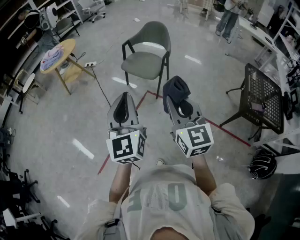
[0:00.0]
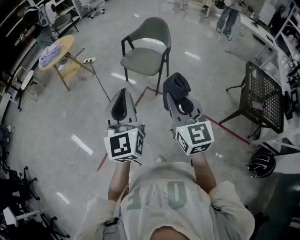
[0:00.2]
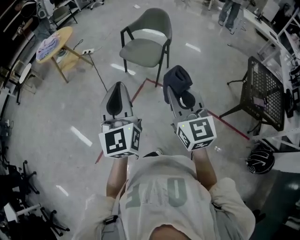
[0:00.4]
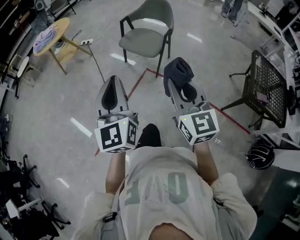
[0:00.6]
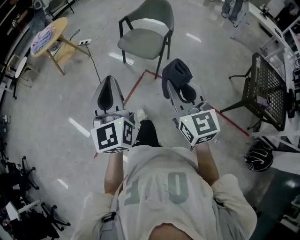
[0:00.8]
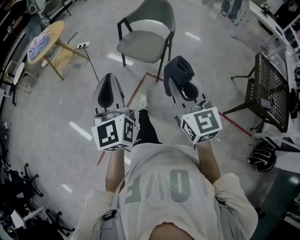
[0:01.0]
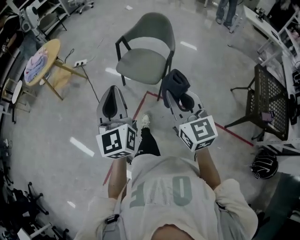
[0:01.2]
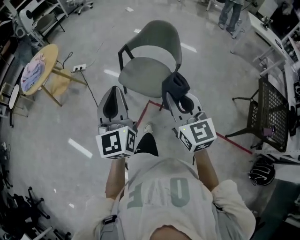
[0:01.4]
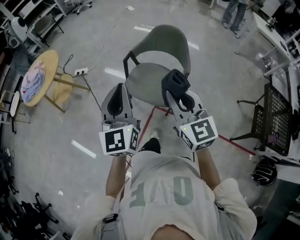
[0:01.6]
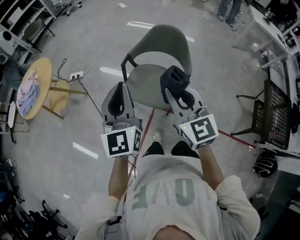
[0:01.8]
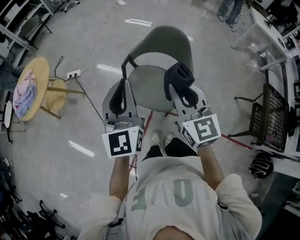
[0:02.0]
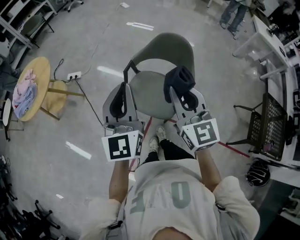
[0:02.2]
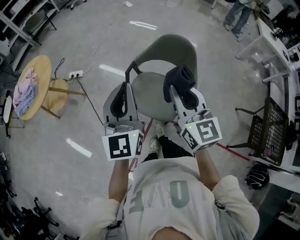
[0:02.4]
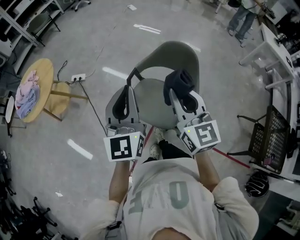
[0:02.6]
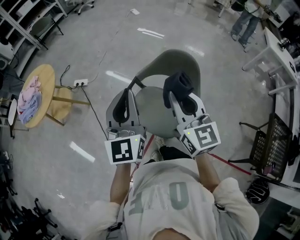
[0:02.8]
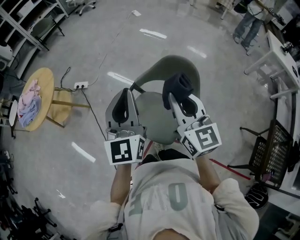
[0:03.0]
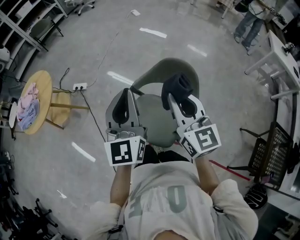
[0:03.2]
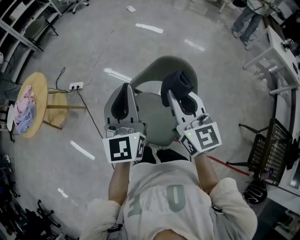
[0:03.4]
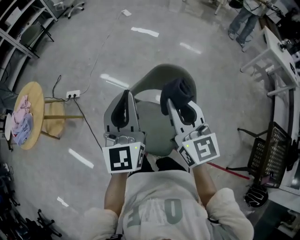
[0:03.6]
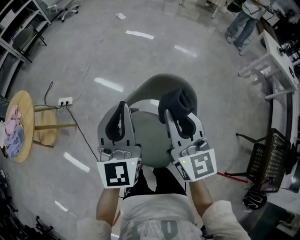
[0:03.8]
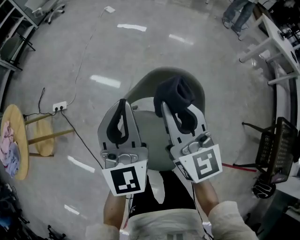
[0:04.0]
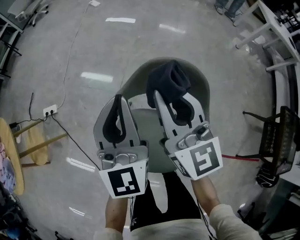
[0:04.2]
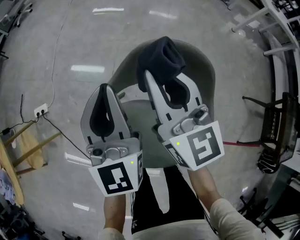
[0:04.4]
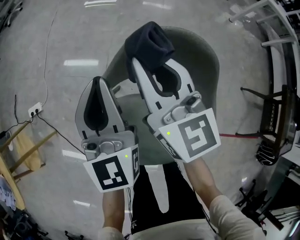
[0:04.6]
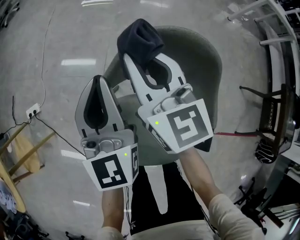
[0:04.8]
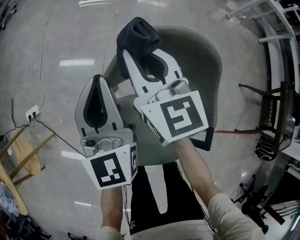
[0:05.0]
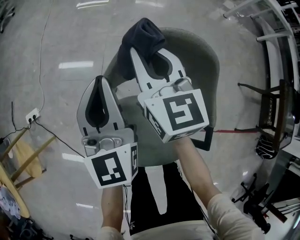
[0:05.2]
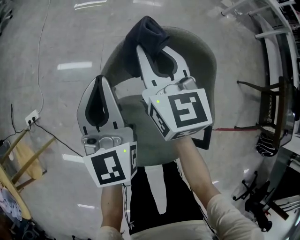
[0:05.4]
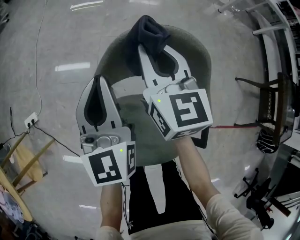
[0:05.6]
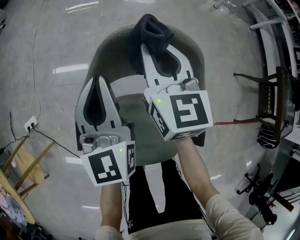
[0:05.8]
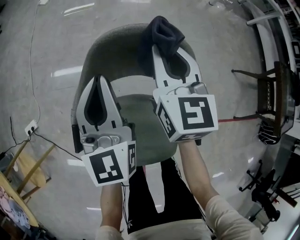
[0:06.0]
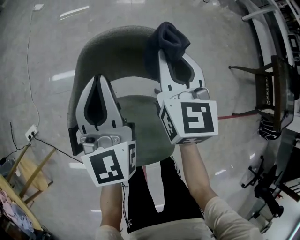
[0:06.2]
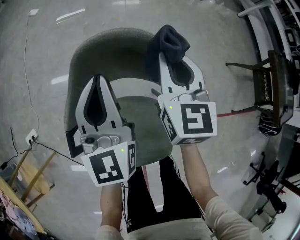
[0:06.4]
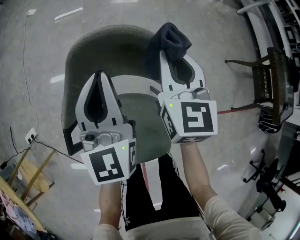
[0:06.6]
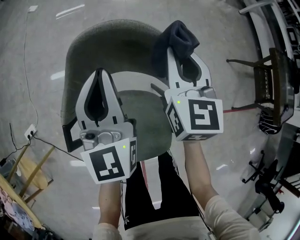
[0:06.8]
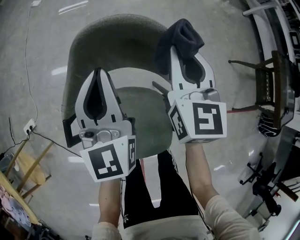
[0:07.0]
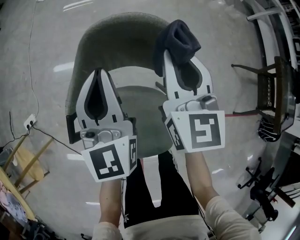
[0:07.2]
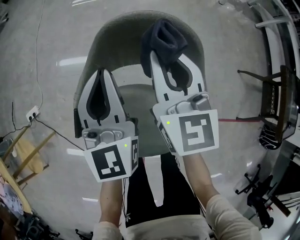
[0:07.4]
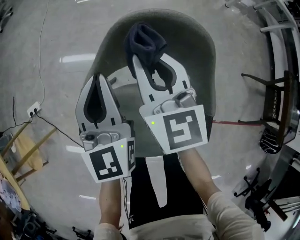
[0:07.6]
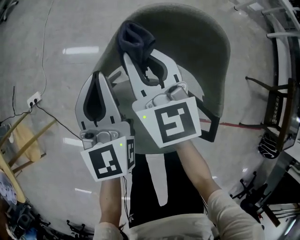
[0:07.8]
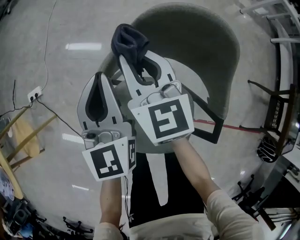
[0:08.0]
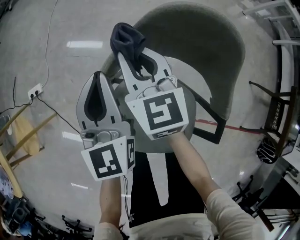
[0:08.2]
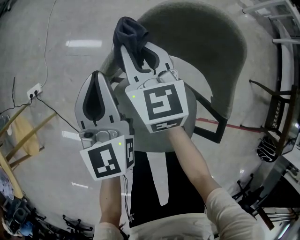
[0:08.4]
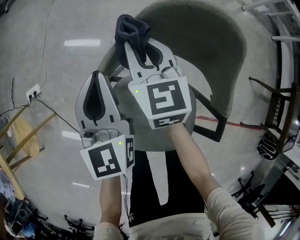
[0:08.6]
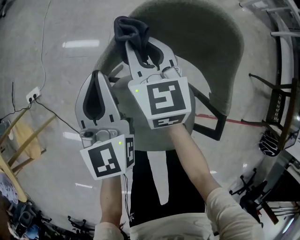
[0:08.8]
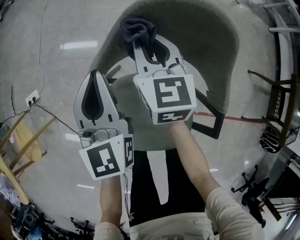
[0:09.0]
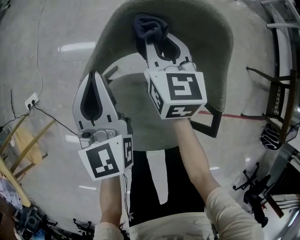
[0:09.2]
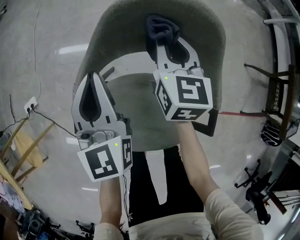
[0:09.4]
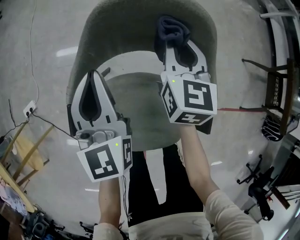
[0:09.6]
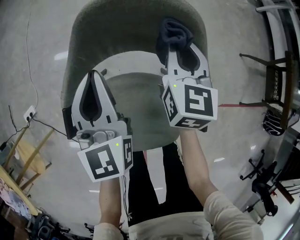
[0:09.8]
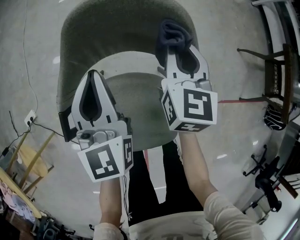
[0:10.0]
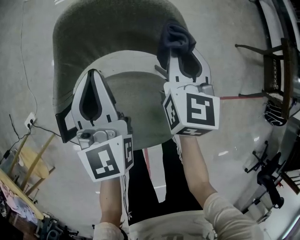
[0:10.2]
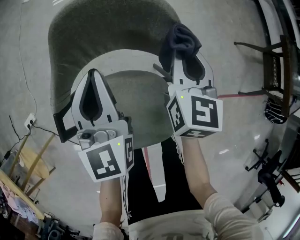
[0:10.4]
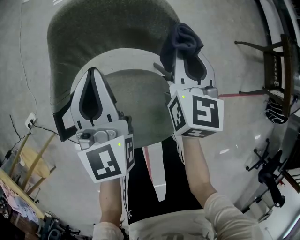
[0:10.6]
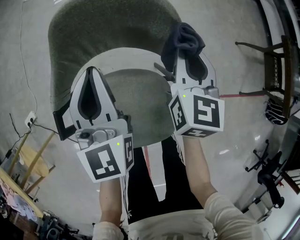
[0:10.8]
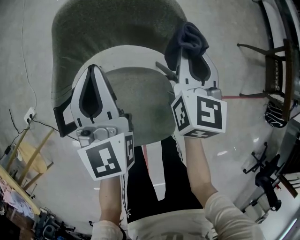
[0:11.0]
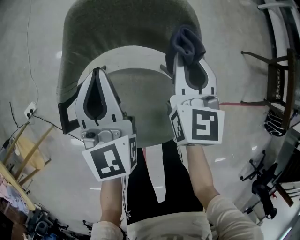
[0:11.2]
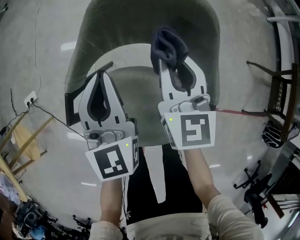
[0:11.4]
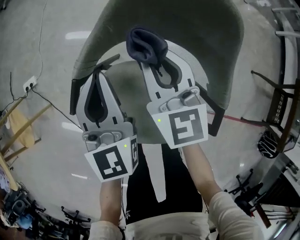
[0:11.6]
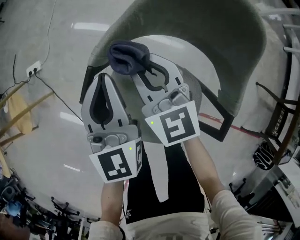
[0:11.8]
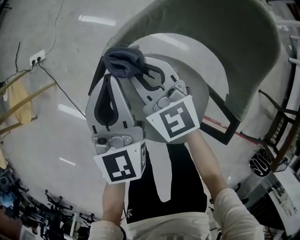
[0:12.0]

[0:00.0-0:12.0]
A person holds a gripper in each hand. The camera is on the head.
0:00.0 to 0:01.6: The pair of grippers is taken forward, some 50 cm.
0:01.6 to 0:03.0: The grippers both shift forward by about 25 cm.
0:03.0 to 0:04.4: The two grippers go approximately 30 cm forward and downward.
0:04.4 to 0:06.0: The two grippers go approximately 10 cm to the right and downward. The right gripper changes its angle by about 30 degrees.
0:06.0 to 0:07.6: The right gripper moves to the left, roughly 10 cm. Meanwhile the left gripper ends up some 5 cm from where it was.
0:07.6 to 0:09.0: The right gripper travels downward by roughly 10 cm, and goes to the left and returns, some 10 cm each way. Meanwhile the left gripper shifts by some 5 cm.
0:09.0 to 0:10.4: The left gripper shifts approximately 15 cm to the right. The right gripper travels to the right by roughly 25 cm, and changes its angle by approximately 30 degrees.
0:10.4 to 0:12.0: The right gripper changes place by about 35 cm, and rotates some 70 degrees. Meanwhile the left gripper ends up about 20 cm from where it was, and turns by roughly 30 degrees.

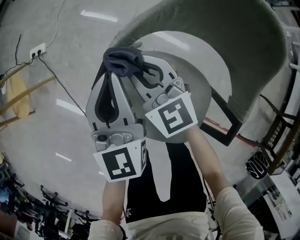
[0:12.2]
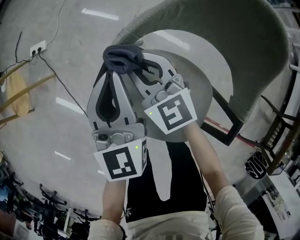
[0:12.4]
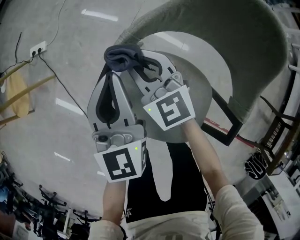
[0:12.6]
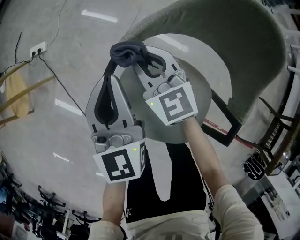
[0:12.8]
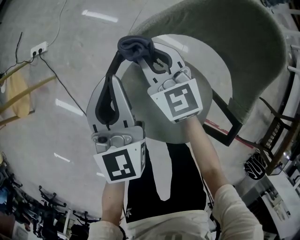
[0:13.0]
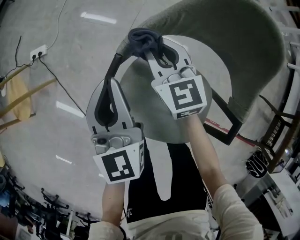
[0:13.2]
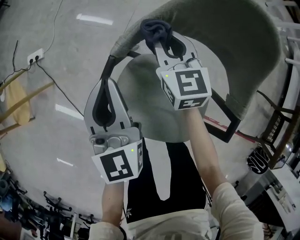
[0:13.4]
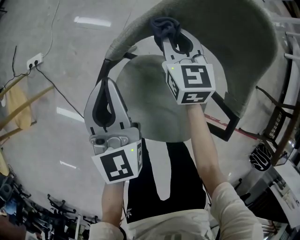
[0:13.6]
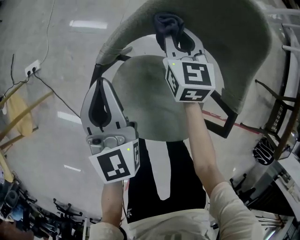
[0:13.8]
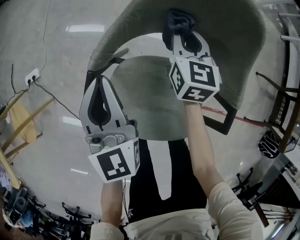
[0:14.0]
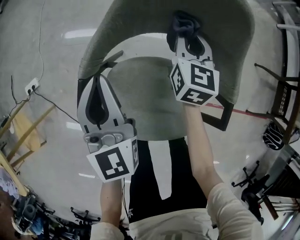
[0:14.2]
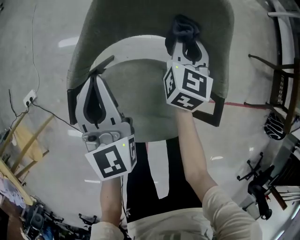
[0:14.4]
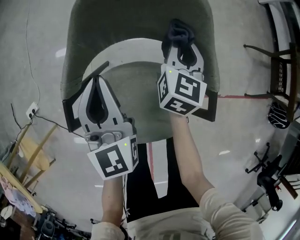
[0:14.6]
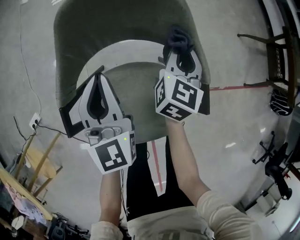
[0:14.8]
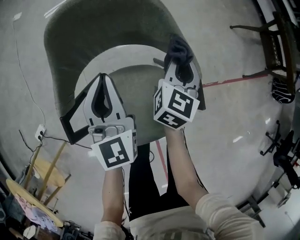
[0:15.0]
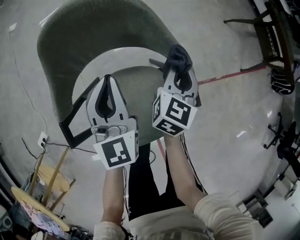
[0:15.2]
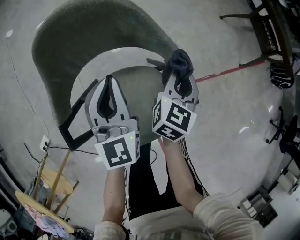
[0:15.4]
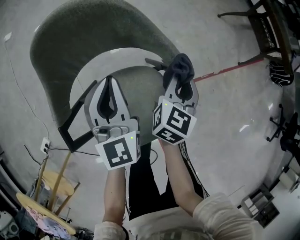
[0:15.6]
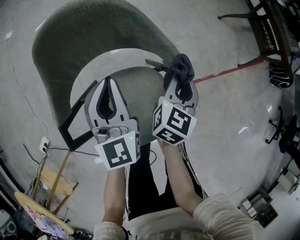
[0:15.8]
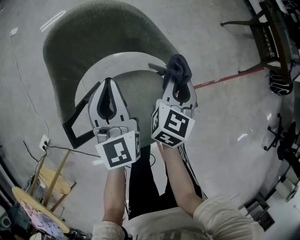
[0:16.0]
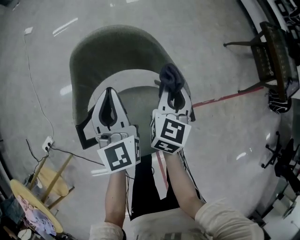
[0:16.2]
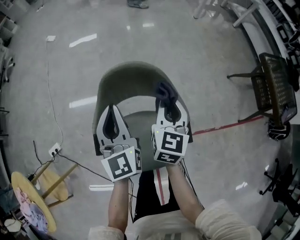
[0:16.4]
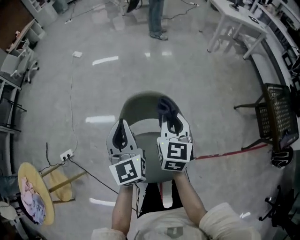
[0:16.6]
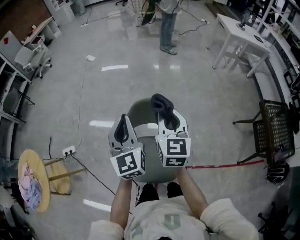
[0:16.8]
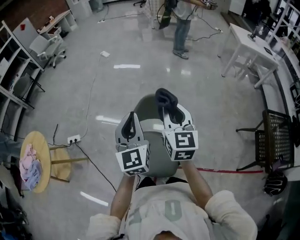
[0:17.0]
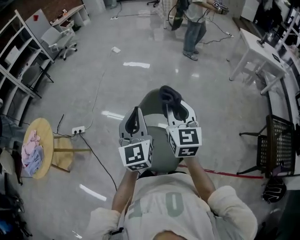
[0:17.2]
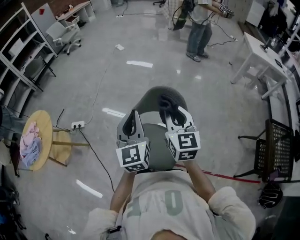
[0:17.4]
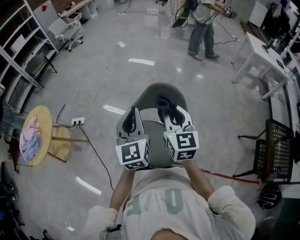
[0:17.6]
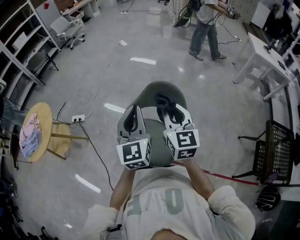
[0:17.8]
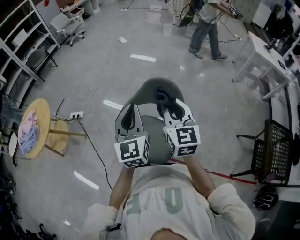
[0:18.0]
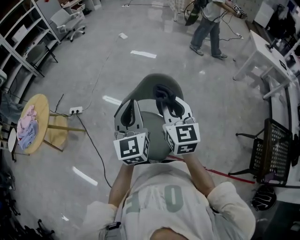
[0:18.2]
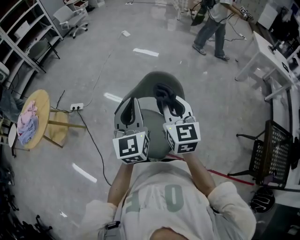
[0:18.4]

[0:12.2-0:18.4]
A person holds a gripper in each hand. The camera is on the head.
0:12.2 to 0:13.8: The right gripper heads to the right, covering some 20 cm, and changes its angle by approximately 40 degrees.
0:13.8 to 0:15.4: The right gripper shifts by roughly 35 cm, and turns by some 70 degrees; the left gripper shifts by some 25 cm, and turns by approximately 40 degrees.
0:15.4 to 0:16.8: Both grippers travel together upward, roughly 35 cm. The right gripper swivels roughly 50 degrees. Meanwhile the left gripper changes its angle by some 30 degrees.
0:16.8 to 0:18.4: The two grippers go roughly 15 cm backward. The right gripper rotates approximately 30 degrees.

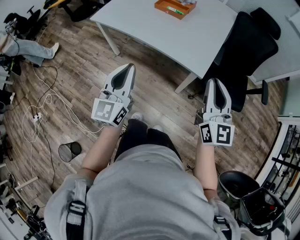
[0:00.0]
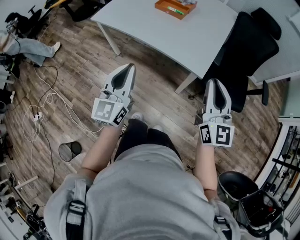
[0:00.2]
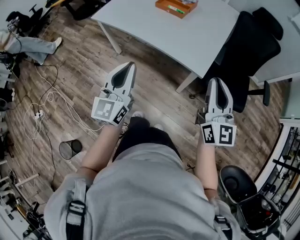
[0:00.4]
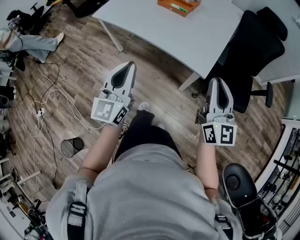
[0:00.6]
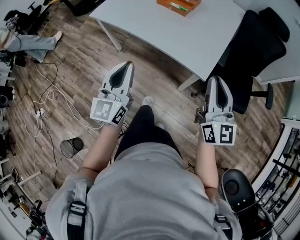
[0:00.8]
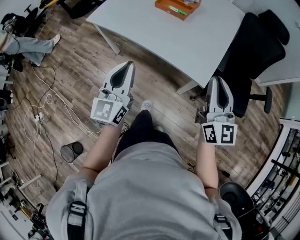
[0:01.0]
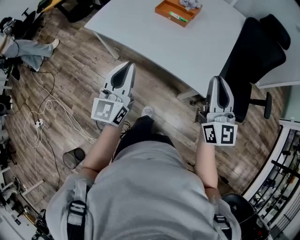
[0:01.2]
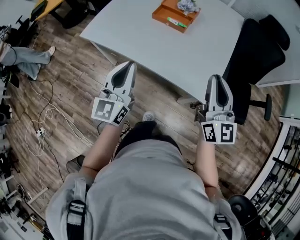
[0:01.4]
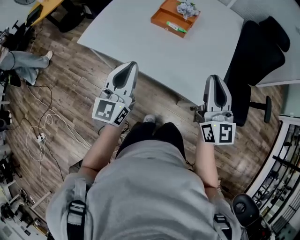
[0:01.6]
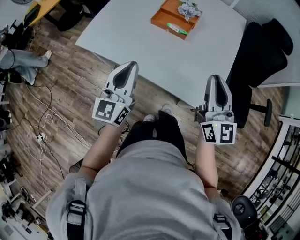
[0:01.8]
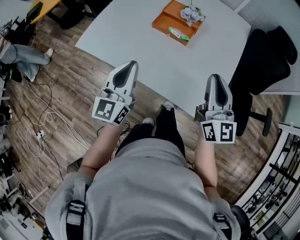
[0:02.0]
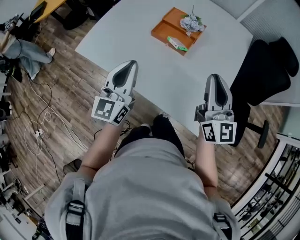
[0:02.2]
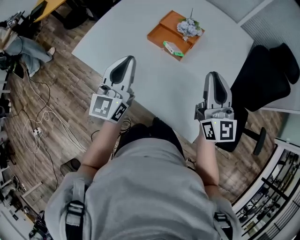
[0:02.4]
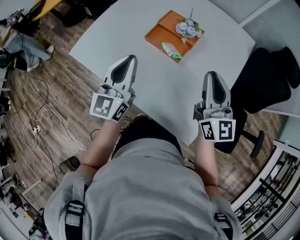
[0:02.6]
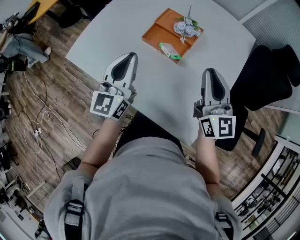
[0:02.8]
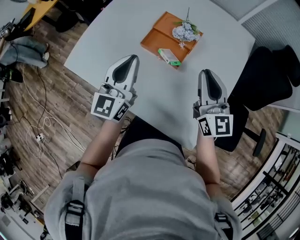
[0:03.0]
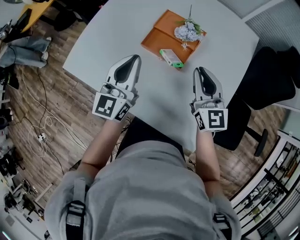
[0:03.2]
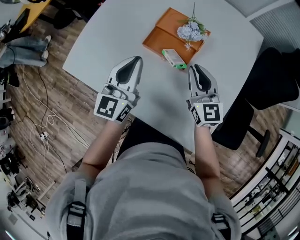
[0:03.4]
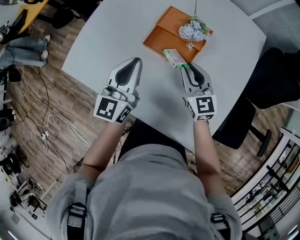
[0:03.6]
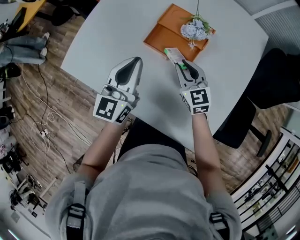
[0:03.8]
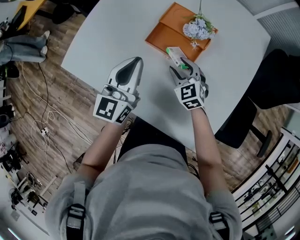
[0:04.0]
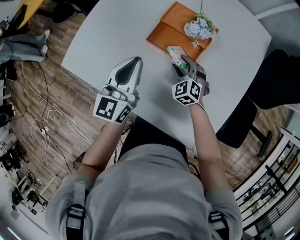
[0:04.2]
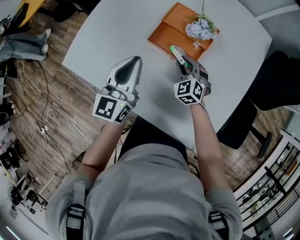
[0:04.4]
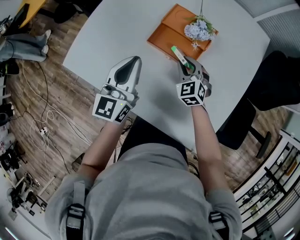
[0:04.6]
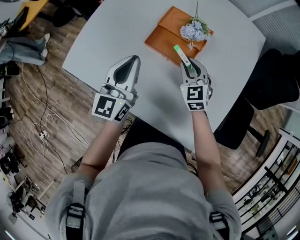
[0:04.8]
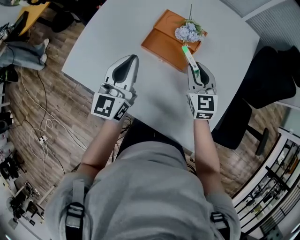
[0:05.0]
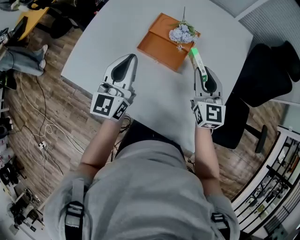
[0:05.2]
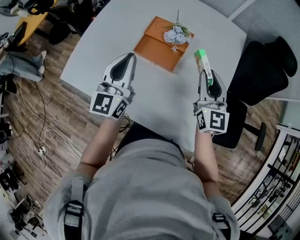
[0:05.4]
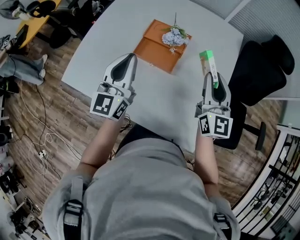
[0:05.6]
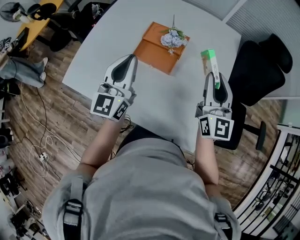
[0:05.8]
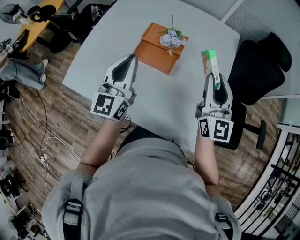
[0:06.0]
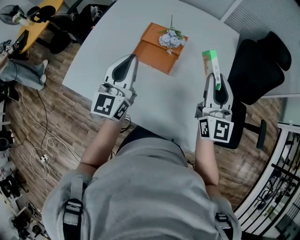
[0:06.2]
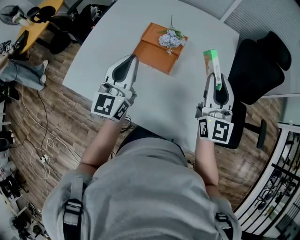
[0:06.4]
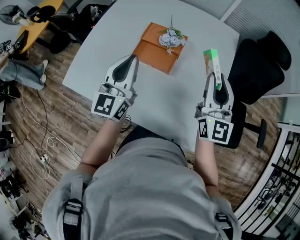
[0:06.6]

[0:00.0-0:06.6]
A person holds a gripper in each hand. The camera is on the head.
0:00.0 to 0:01.6: The grippers both shift forward by some 35 cm.
0:01.6 to 0:03.2: Both grippers travel together forward, roughly 40 cm.
0:03.2 to 0:05.0: The right gripper shifts approximately 5 cm forward, and travels downward and back again, some 25 cm each way.
0:05.0 to 0:06.6: The right gripper moves upward, to the right and backward, about 25 cm, and changes its angle by roughly 30 degrees; the left gripper is displaced upward, to the right and backward by about 10 cm.
